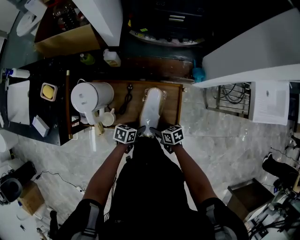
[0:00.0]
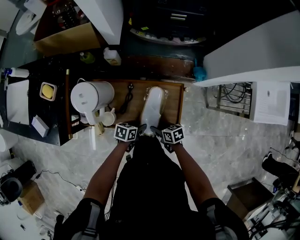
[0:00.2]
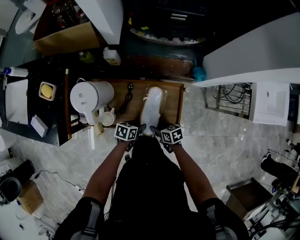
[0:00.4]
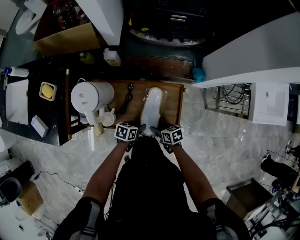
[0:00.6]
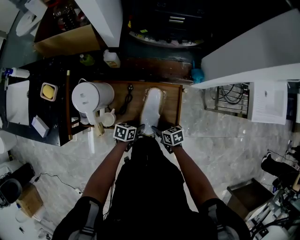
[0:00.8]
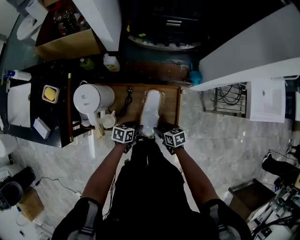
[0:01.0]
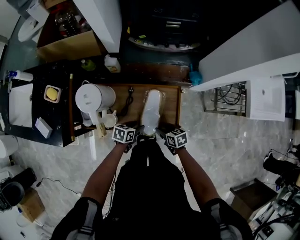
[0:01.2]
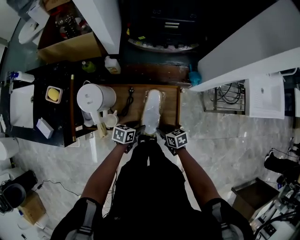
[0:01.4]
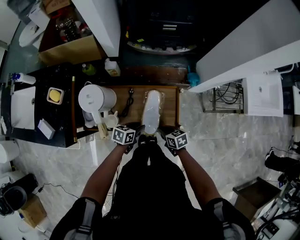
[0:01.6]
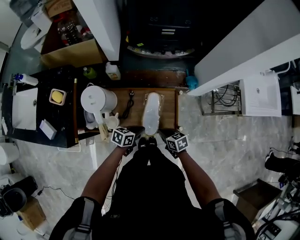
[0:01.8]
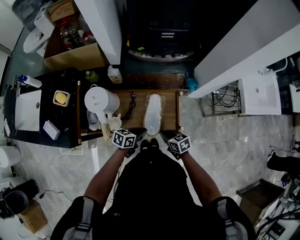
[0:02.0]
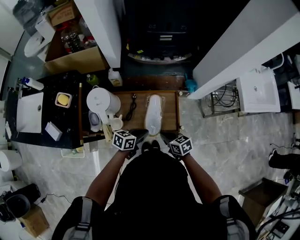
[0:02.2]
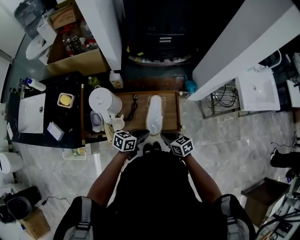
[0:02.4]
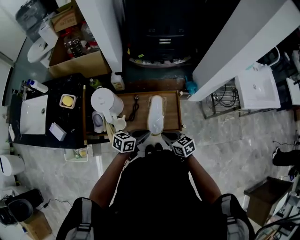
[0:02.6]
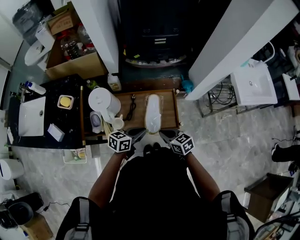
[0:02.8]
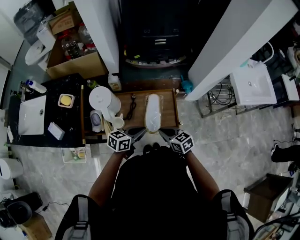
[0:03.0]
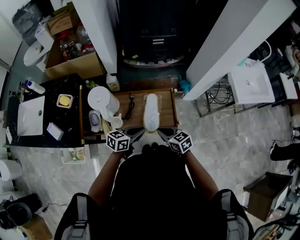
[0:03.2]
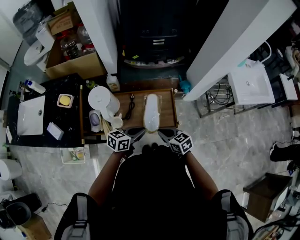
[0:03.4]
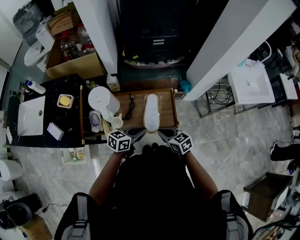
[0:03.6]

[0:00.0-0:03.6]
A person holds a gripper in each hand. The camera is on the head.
0.0 to 1.8 s: The two grippers go about 5 cm upward. The right gripper closes its fingers. Meanwhile the left gripper closes up.
1.8 to 3.6 s: The grippers both shift upward by roughly 10 cm.

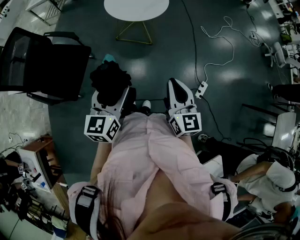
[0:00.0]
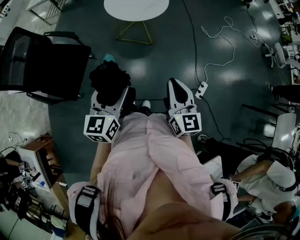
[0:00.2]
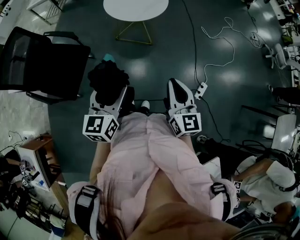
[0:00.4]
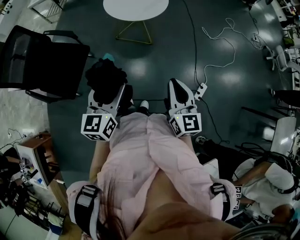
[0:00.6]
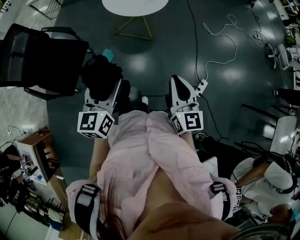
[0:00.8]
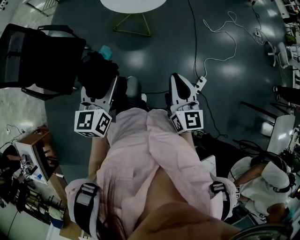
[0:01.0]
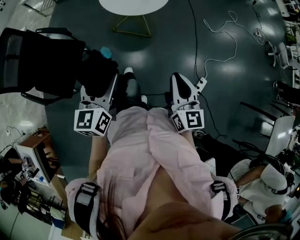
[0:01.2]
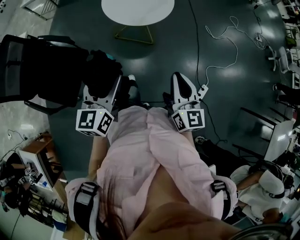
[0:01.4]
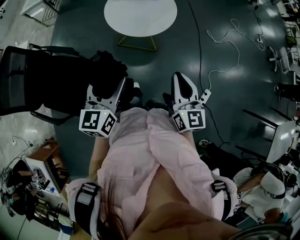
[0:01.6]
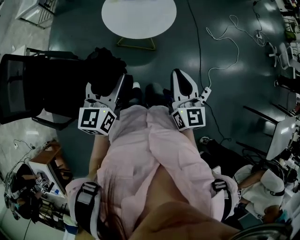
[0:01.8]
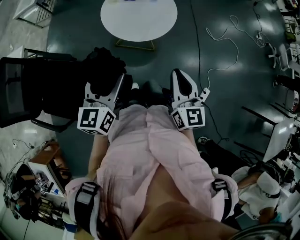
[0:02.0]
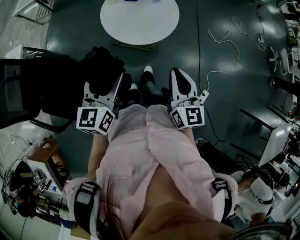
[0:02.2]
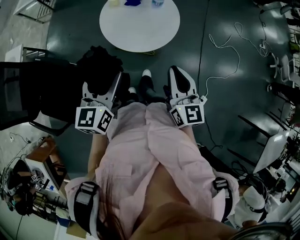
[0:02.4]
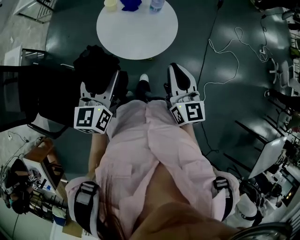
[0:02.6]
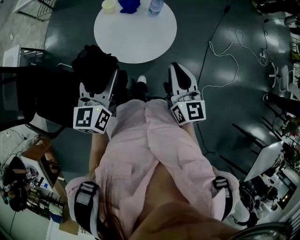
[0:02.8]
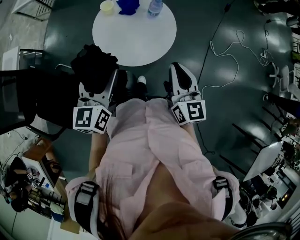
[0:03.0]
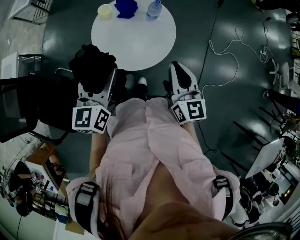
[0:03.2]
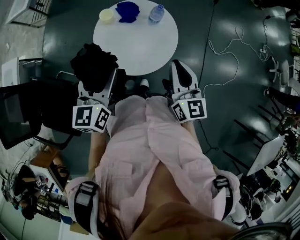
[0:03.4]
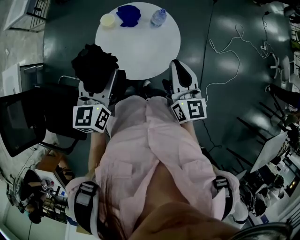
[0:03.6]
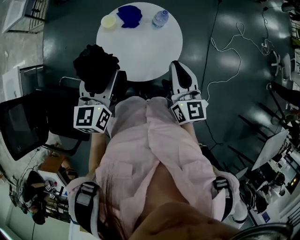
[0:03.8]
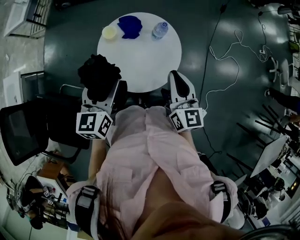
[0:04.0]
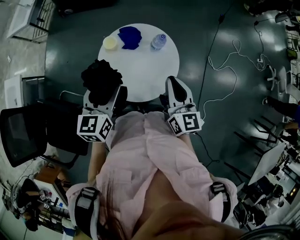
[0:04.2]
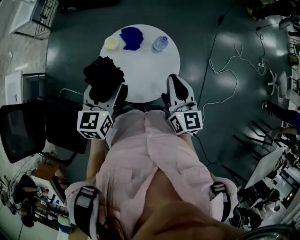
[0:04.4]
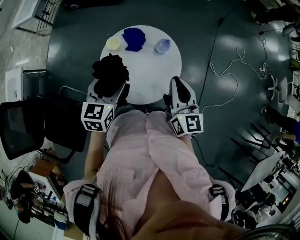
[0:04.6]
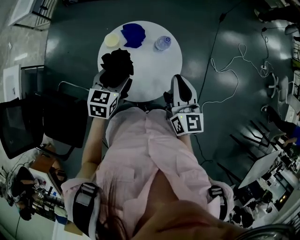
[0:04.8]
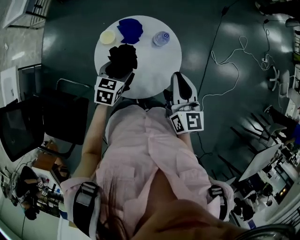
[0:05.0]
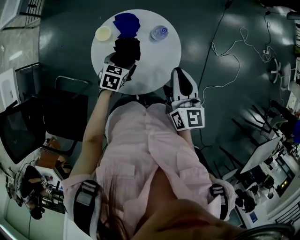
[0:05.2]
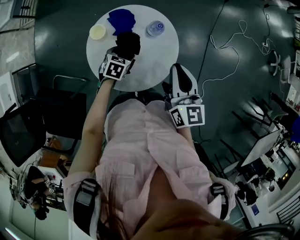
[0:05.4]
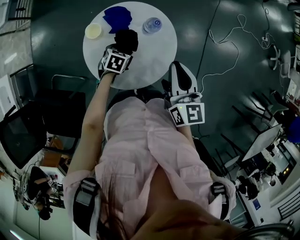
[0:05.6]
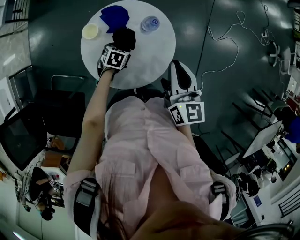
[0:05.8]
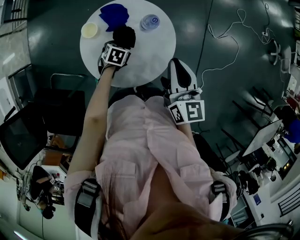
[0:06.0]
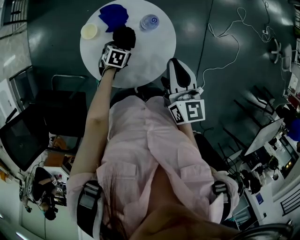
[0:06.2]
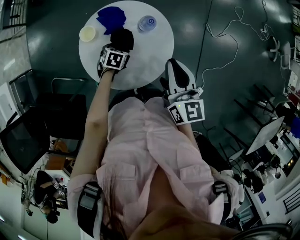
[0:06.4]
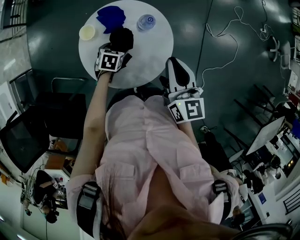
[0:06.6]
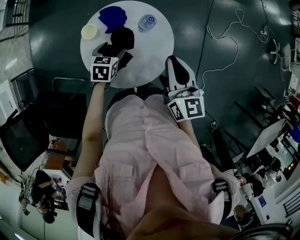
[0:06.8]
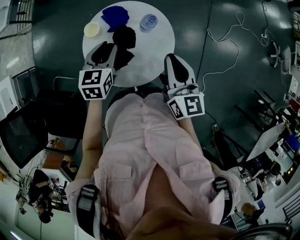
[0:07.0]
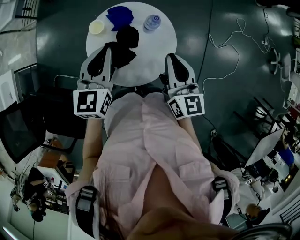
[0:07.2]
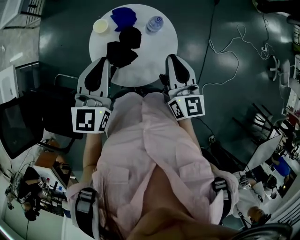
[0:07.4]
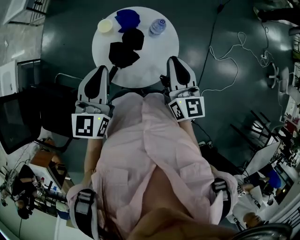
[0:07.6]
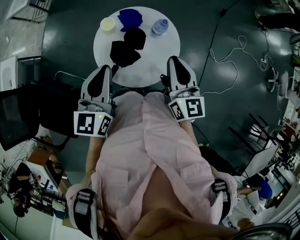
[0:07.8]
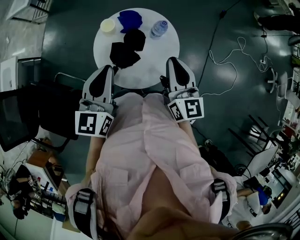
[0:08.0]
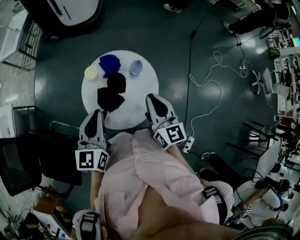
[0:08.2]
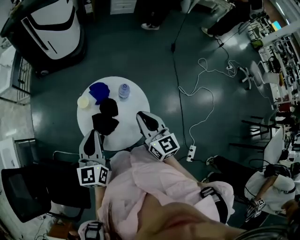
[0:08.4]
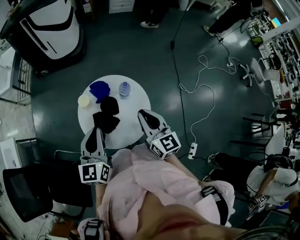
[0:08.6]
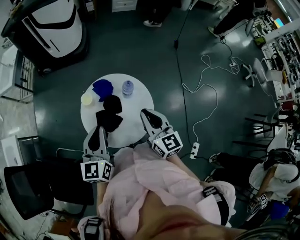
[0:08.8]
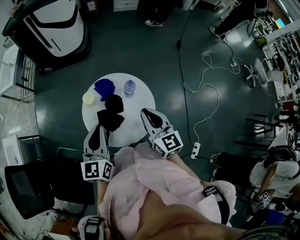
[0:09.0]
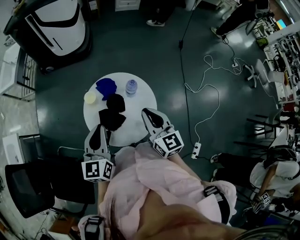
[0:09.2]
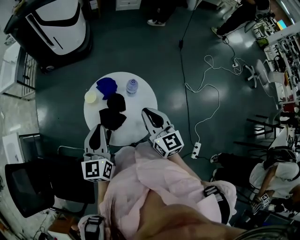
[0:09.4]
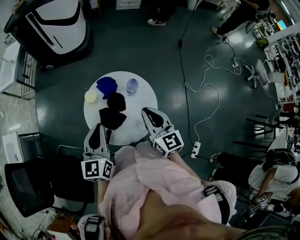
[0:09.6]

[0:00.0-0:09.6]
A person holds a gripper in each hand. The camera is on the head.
0.0 to 1.6 s: Both grippers travel together forward, some 20 cm.
1.6 to 3.2 s: Both grippers travel together forward, some 30 cm.
3.2 to 4.8 s: The right gripper travels forward by approximately 15 cm. Meanwhile the left gripper moves forward and downward, about 20 cm, and turns by some 30 degrees.
4.8 to 6.4 s: The left gripper moves downward, about 25 cm, and changes its angle by some 30 degrees.
6.4 to 8.0 s: The right gripper moves about 5 cm. The left gripper moves upward, roughly 35 cm, points its fingers approximately 50 degrees further upward, and closes.
8.0 to 9.6 s: The grippers move only a little.

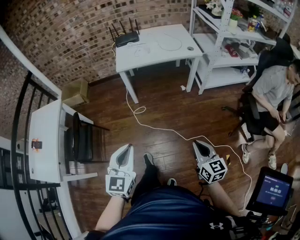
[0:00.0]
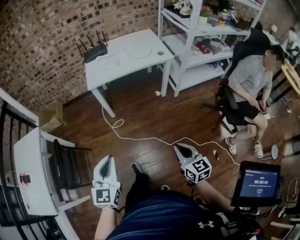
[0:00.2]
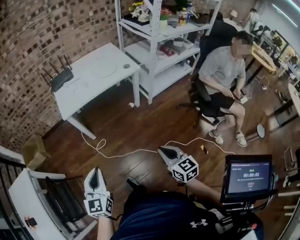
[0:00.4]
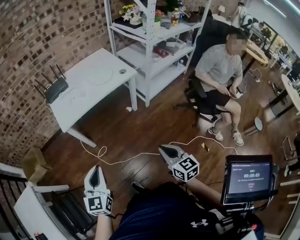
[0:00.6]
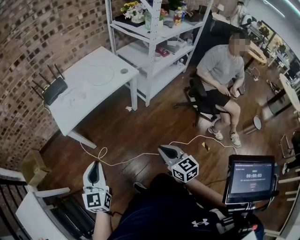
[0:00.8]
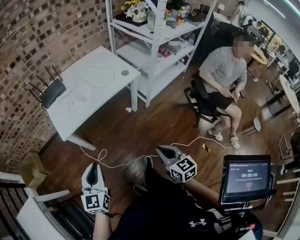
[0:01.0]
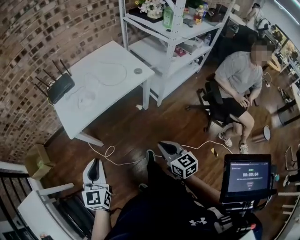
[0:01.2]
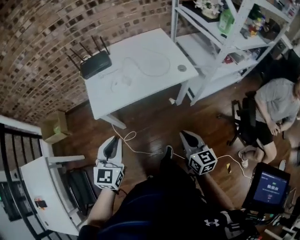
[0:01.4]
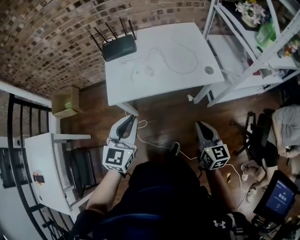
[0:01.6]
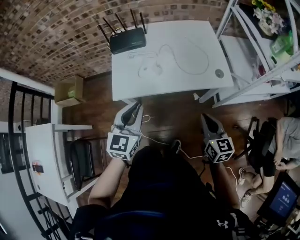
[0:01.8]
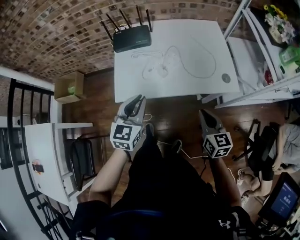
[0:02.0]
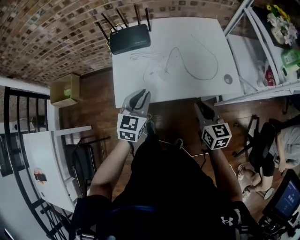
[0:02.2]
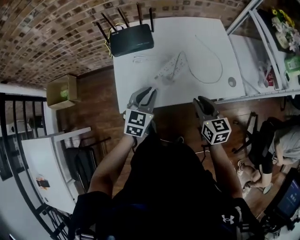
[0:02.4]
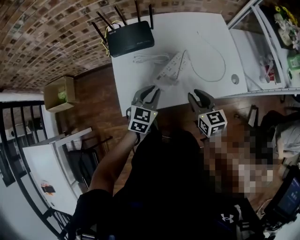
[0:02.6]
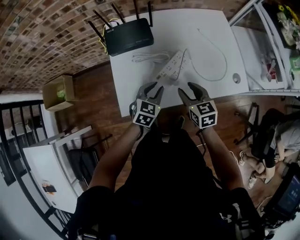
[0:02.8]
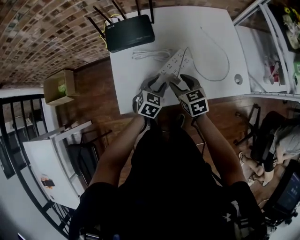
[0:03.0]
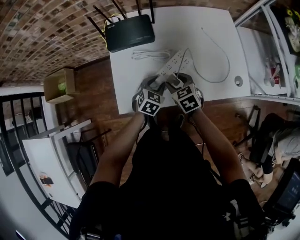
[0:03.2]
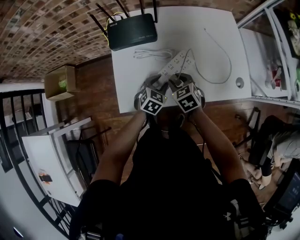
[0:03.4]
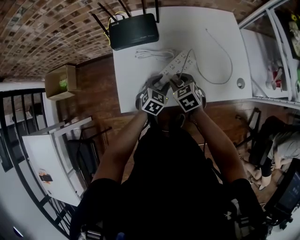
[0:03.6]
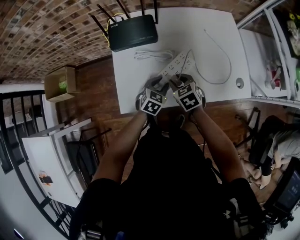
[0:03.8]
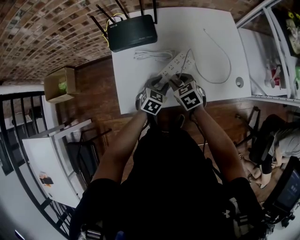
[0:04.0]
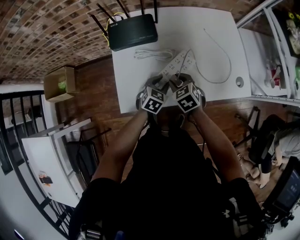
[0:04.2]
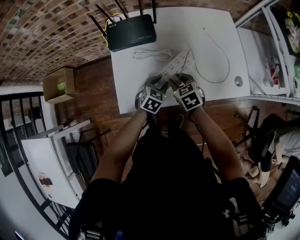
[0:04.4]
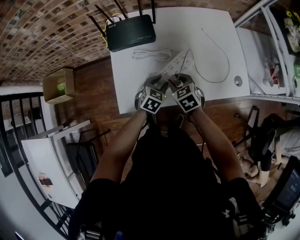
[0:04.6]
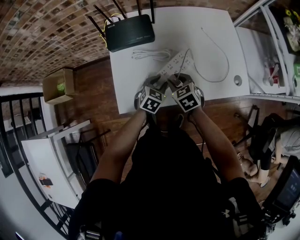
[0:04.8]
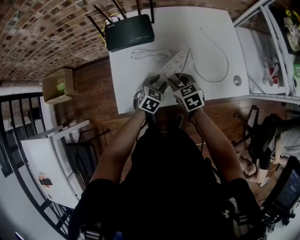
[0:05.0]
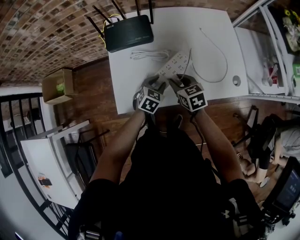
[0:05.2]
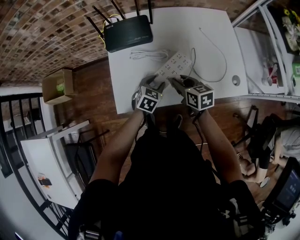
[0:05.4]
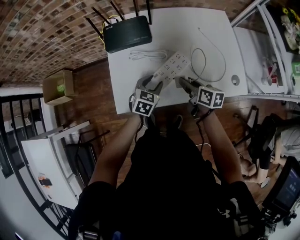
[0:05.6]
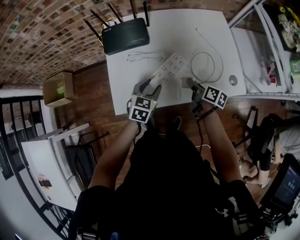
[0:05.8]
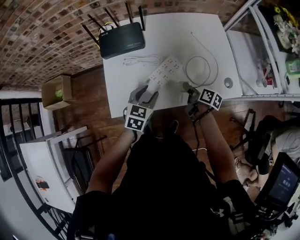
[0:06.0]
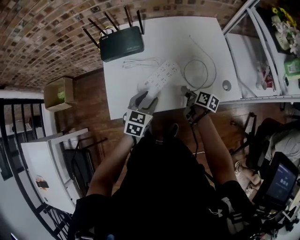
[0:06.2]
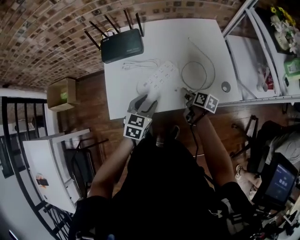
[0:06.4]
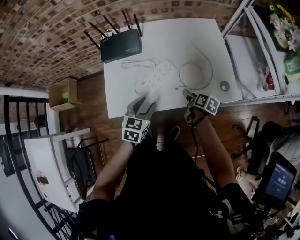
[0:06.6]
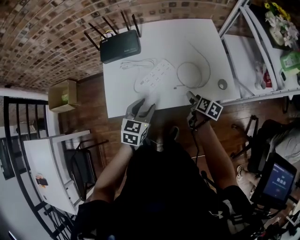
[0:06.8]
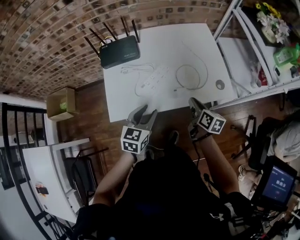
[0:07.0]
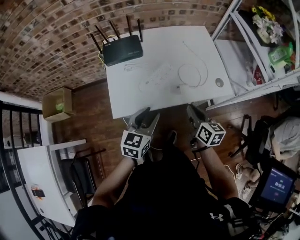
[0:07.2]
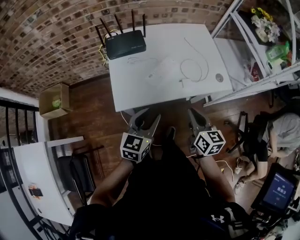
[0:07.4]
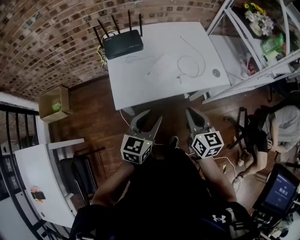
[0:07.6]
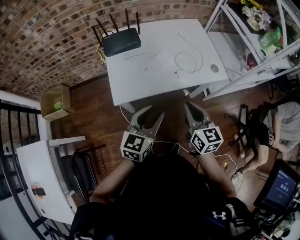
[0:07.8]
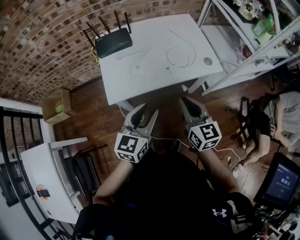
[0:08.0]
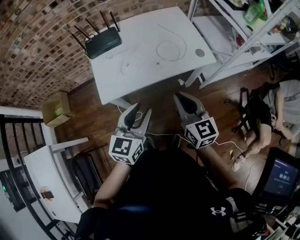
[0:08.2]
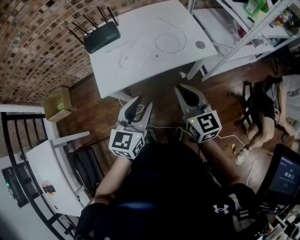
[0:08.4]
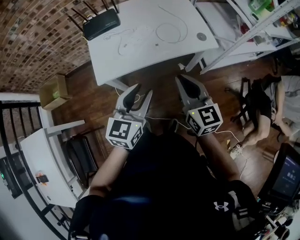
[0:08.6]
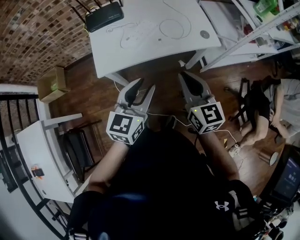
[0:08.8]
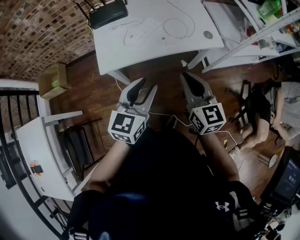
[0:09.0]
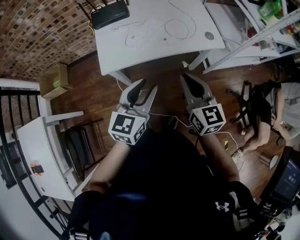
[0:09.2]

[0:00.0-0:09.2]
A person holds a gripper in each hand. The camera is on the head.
0.0 to 1.6 s: The pair of grippers is taken forward, about 50 cm.
1.6 to 3.0 s: The left gripper heads forward and downward, covering about 40 cm, turns by approximately 30 degrees, and opens. The right gripper goes roughly 40 cm forward, to the left and downward, changes its angle by about 30 degrees, and opens.
3.0 to 4.6 s: The right gripper closes up.
4.6 to 6.2 s: The right gripper heads to the right, covering roughly 15 cm, and twists approximately 70 degrees clockwise, seen from behind; the left gripper travels upward and backward by roughly 10 cm.
6.2 to 7.6 s: The left gripper shifts about 20 cm backward and upward, and rotates roughly 20 degrees; the right gripper moves upward and backward, roughly 30 cm, rotates around the line of its fingers by some 40 degrees, counterclockwise from behind, and closes.
7.6 to 9.2 s: Both grippers move to the right and backward, roughly 10 cm.

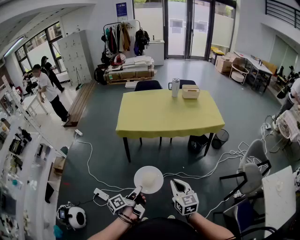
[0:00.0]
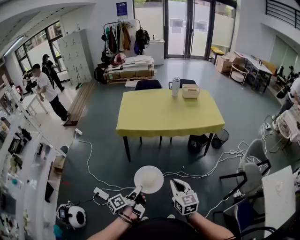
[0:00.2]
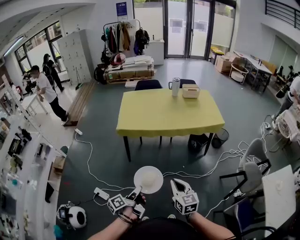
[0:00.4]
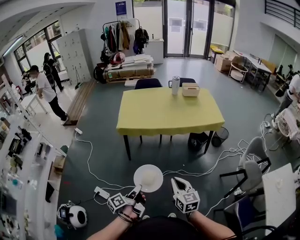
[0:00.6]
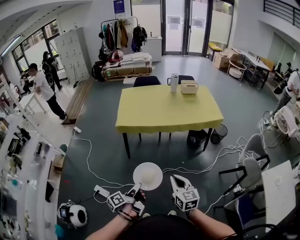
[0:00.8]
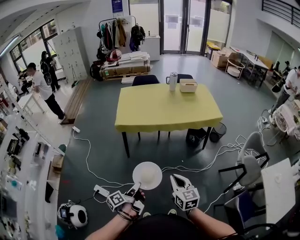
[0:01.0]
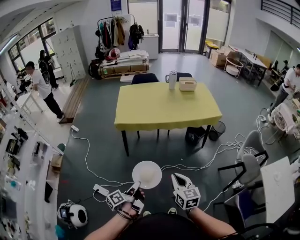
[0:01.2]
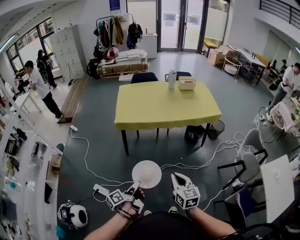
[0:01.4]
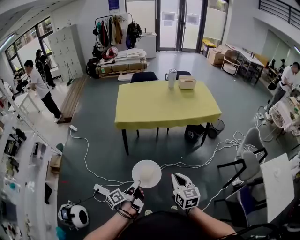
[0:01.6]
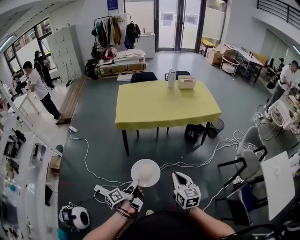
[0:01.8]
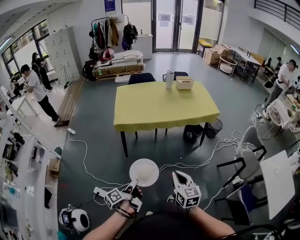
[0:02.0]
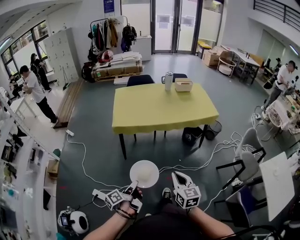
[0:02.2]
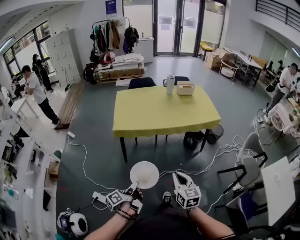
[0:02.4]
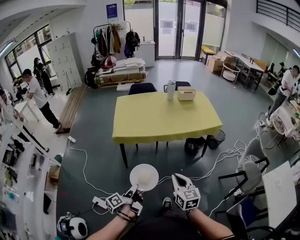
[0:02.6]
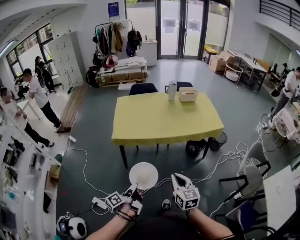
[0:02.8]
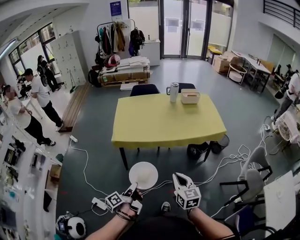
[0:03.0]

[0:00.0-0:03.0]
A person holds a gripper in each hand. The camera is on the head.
0.0 to 1.6 s: The right gripper shifts by some 5 cm.
1.6 to 3.0 s: The right gripper ends up some 20 cm from where it was.
